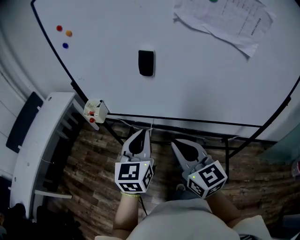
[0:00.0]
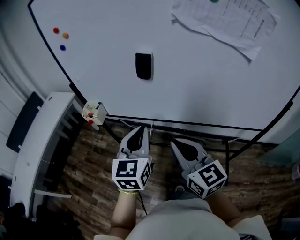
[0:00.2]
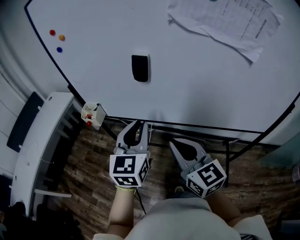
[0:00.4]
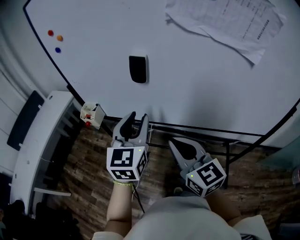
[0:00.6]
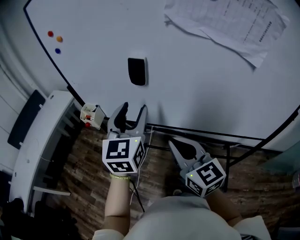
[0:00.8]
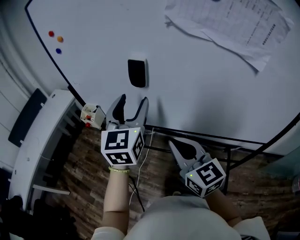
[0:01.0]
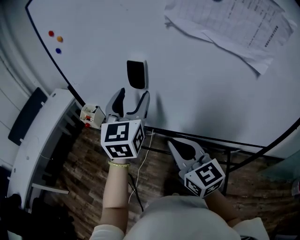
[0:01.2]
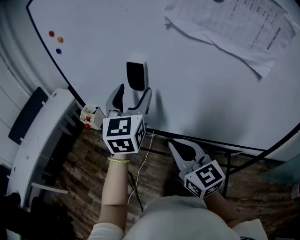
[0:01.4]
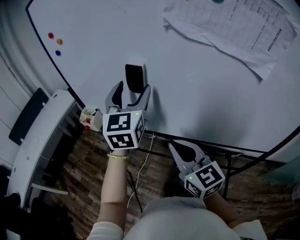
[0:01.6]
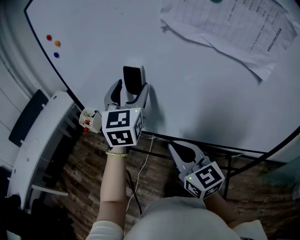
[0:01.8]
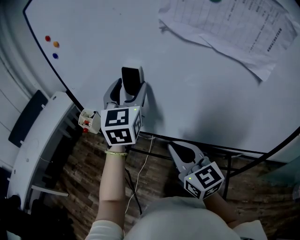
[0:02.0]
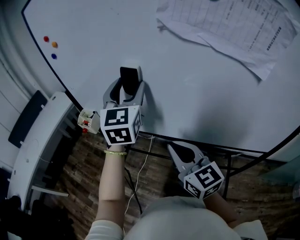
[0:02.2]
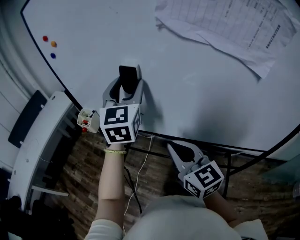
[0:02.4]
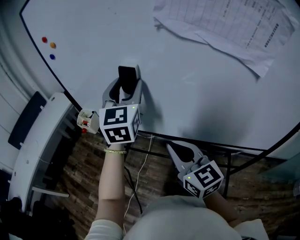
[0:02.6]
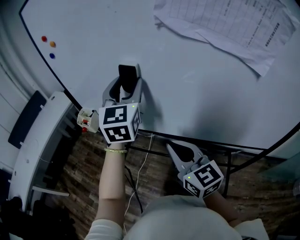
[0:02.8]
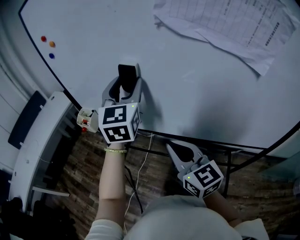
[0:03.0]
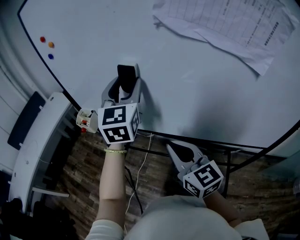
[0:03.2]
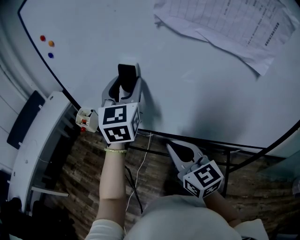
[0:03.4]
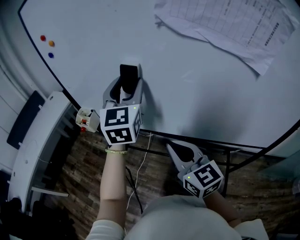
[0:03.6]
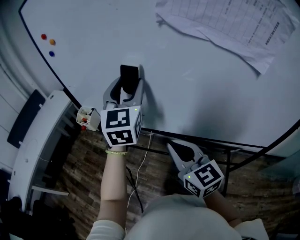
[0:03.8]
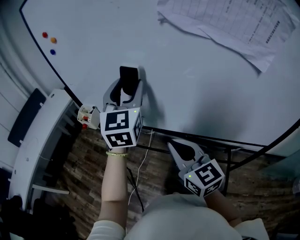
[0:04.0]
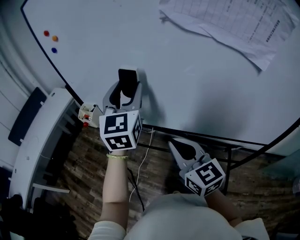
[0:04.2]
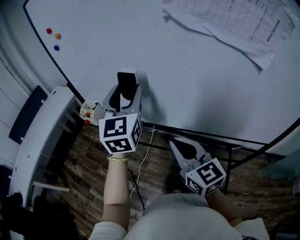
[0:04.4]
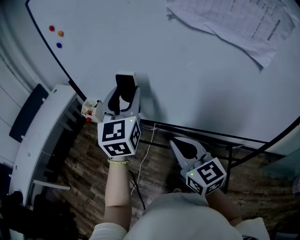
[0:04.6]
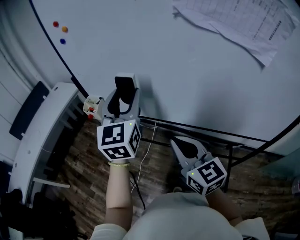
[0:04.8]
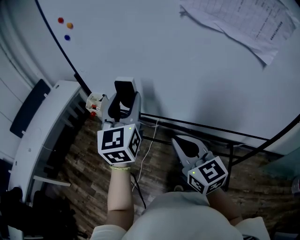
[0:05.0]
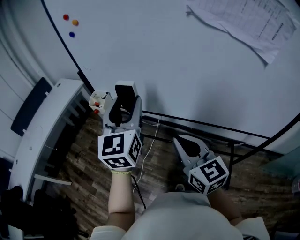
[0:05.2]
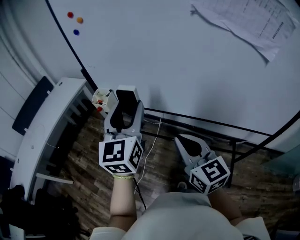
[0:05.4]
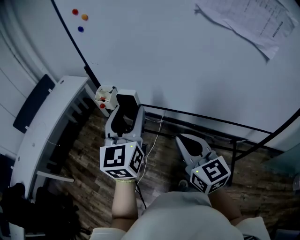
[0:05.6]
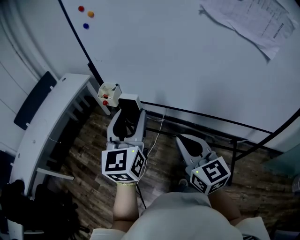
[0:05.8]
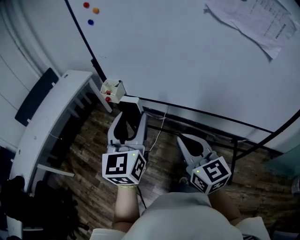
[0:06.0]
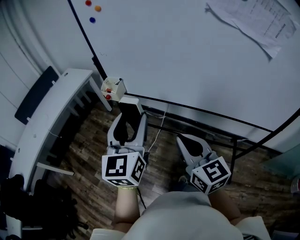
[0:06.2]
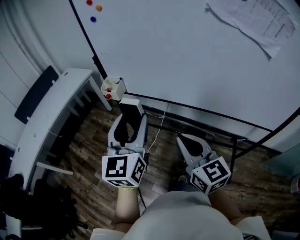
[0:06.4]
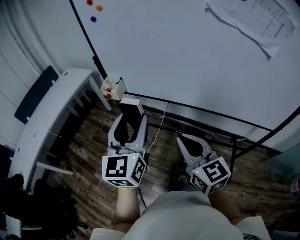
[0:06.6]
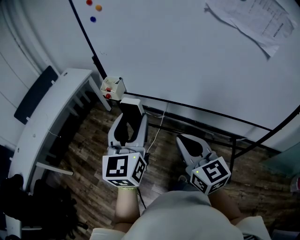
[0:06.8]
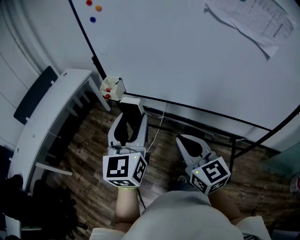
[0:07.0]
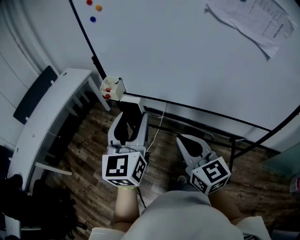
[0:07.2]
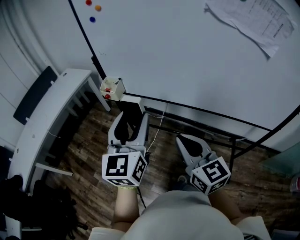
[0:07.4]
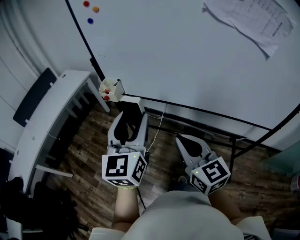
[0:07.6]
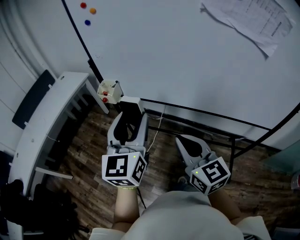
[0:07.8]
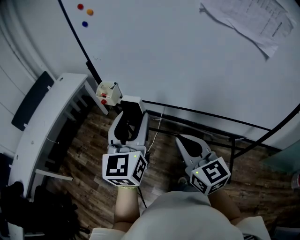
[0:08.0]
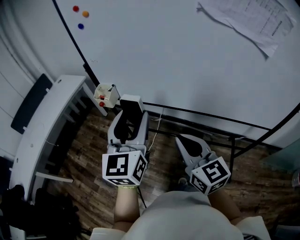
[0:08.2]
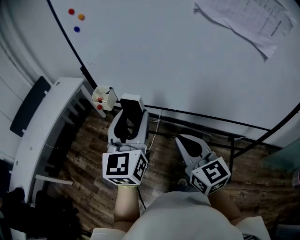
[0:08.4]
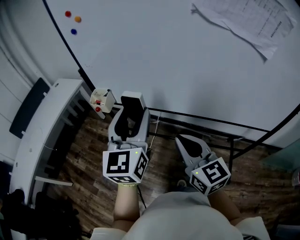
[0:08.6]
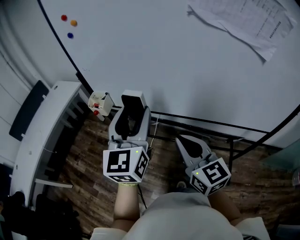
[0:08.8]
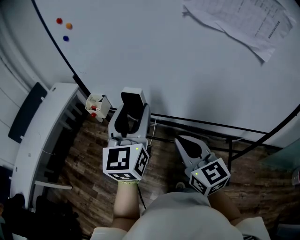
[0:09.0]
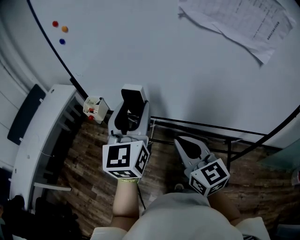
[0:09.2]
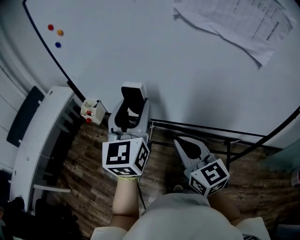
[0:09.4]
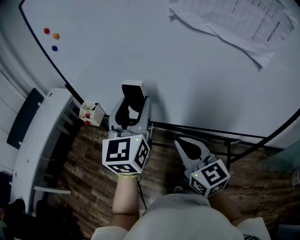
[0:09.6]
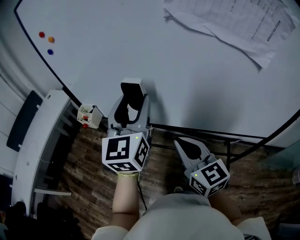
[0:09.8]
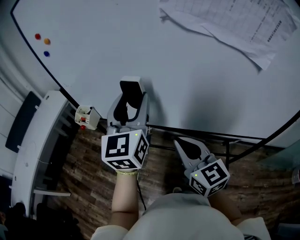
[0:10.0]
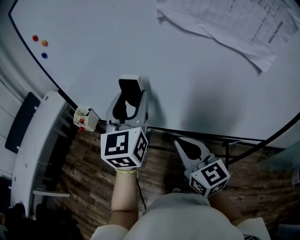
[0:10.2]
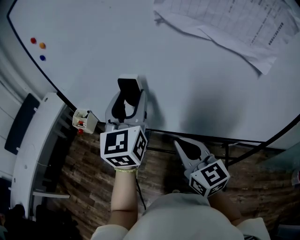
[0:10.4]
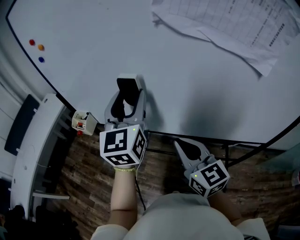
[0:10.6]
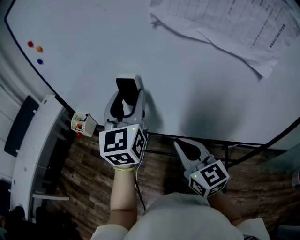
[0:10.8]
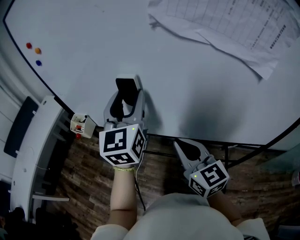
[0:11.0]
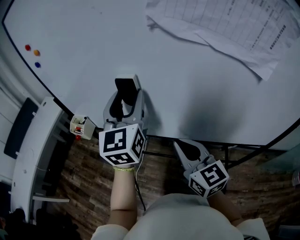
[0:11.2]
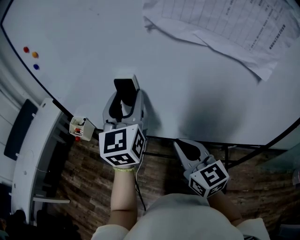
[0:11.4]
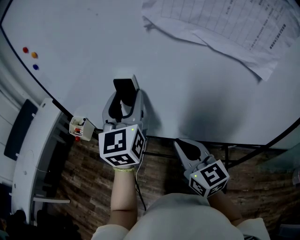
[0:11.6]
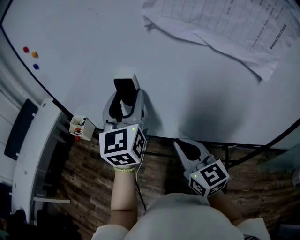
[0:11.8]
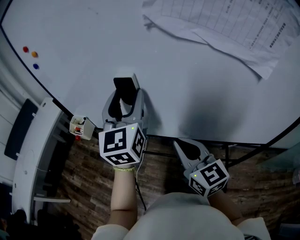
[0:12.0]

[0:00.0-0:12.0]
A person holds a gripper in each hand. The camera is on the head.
0.0 to 1.6 s: The right gripper is displaced forward and to the right by approximately 10 cm, while the left gripper goes about 25 cm forward, upward and to the right, and opens.
1.6 to 3.0 s: The grippers move only a little.
3.0 to 4.4 s: The left gripper moves some 5 cm.
4.4 to 6.0 s: The right gripper heads to the left and backward, covering roughly 15 cm. The left gripper shifts about 20 cm backward and to the left.
6.0 to 7.6 s: The grippers move only a little.
7.6 to 9.0 s: The two grippers go approximately 10 cm to the right and forward.
9.0 to 10.4 s: The right gripper heads to the right and forward, covering about 10 cm. The left gripper moves forward and to the right, roughly 15 cm.
10.4 to 12.0 s: The grippers stay close to where they were, moving slightly.

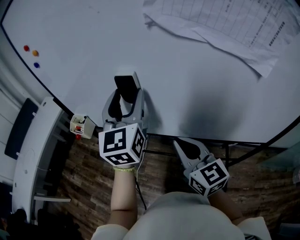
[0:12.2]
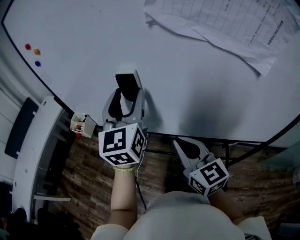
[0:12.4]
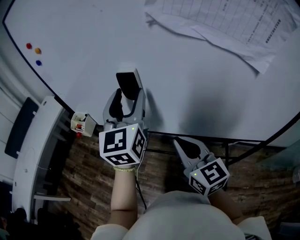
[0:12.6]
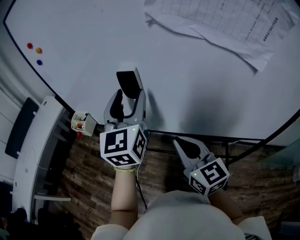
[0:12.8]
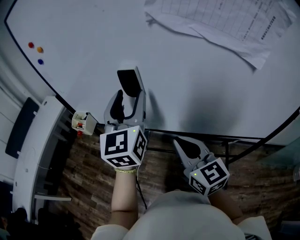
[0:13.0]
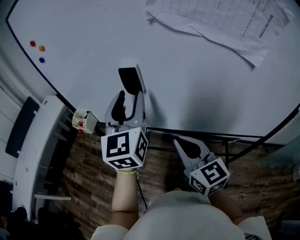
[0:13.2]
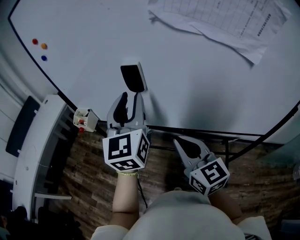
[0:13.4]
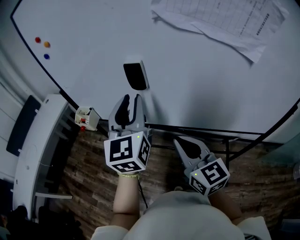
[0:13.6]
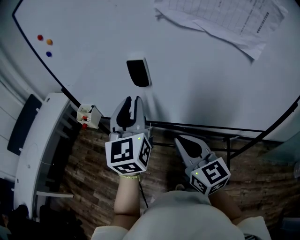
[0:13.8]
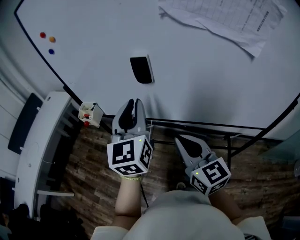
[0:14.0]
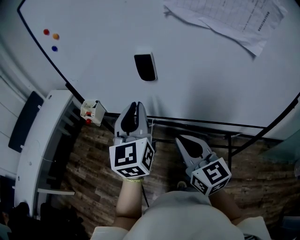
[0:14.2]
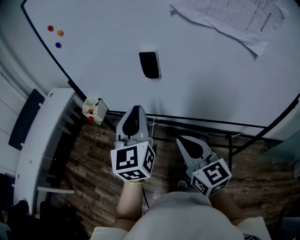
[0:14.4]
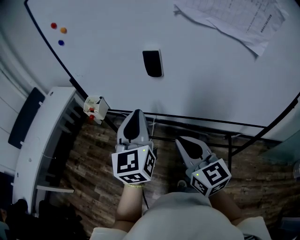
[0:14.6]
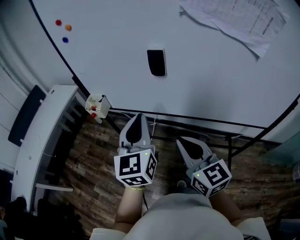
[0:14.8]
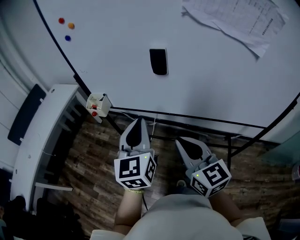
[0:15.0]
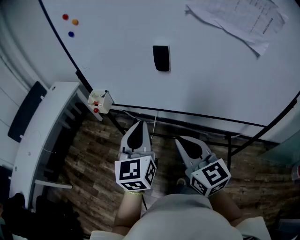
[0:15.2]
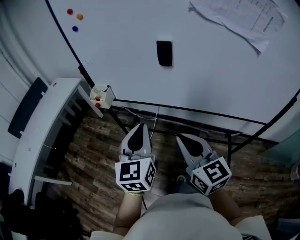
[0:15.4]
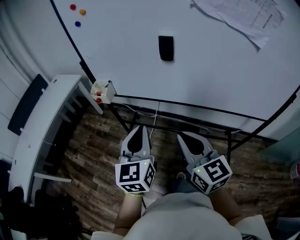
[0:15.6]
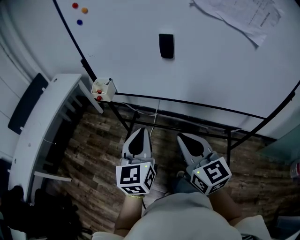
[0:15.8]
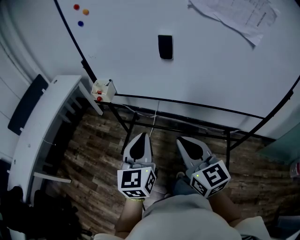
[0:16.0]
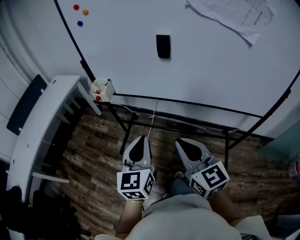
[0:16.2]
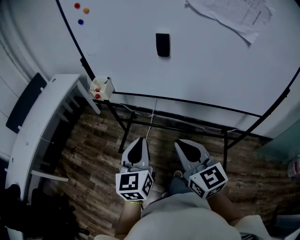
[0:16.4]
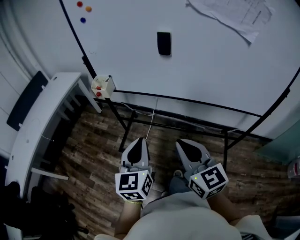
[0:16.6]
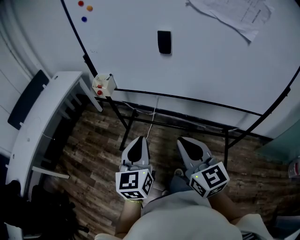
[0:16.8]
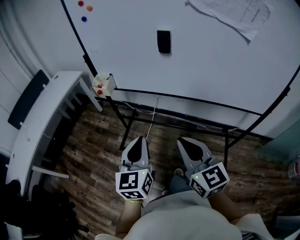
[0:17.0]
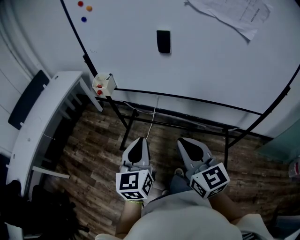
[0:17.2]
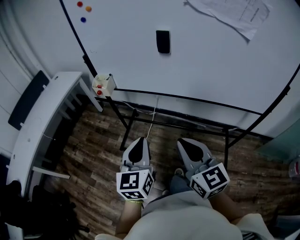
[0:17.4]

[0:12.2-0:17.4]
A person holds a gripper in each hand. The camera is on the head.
12.2 to 14.0 s: The two grippers go about 10 cm backward. The left gripper closes up.
14.0 to 15.6 s: The left gripper heads backward, to the left and downward, covering approximately 20 cm, while the right gripper shifts approximately 10 cm to the left and backward.
15.6 to 17.4 s: The two grippers go some 10 cm backward.

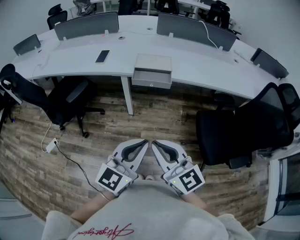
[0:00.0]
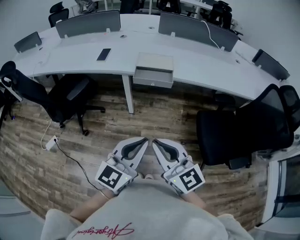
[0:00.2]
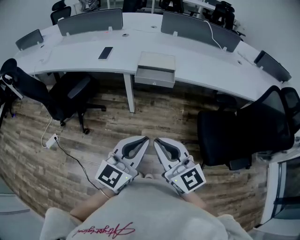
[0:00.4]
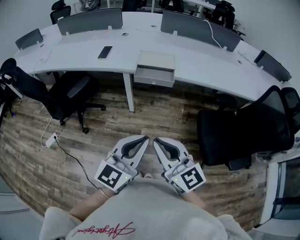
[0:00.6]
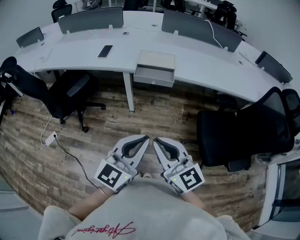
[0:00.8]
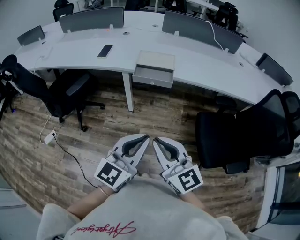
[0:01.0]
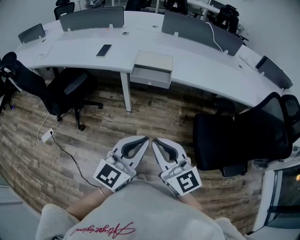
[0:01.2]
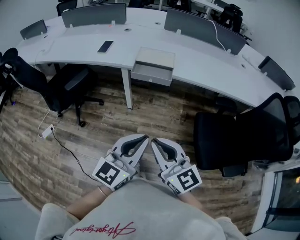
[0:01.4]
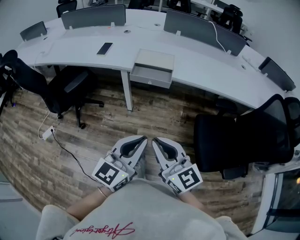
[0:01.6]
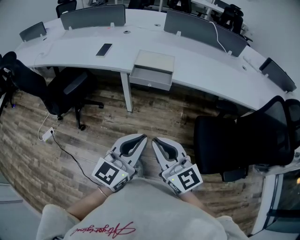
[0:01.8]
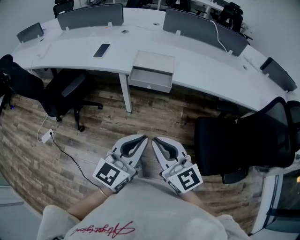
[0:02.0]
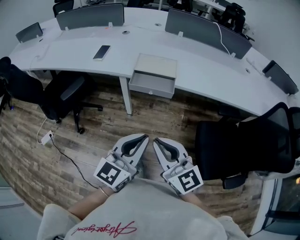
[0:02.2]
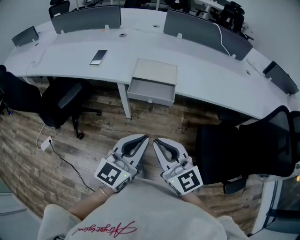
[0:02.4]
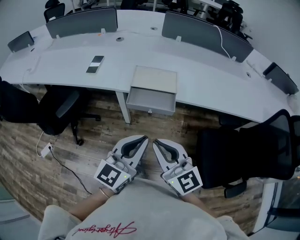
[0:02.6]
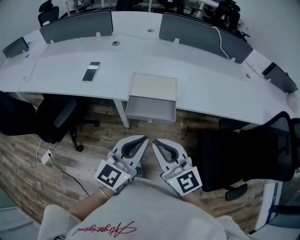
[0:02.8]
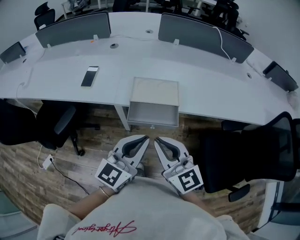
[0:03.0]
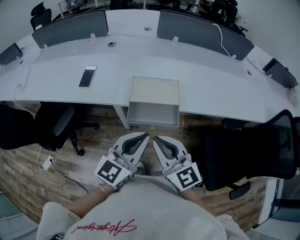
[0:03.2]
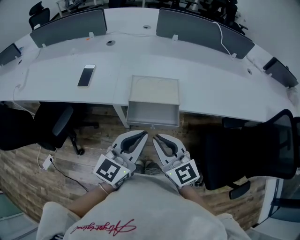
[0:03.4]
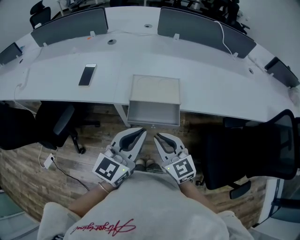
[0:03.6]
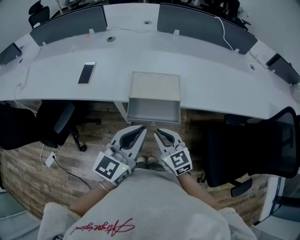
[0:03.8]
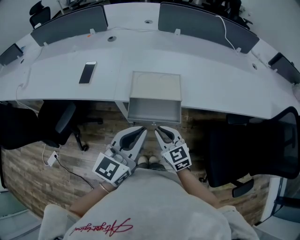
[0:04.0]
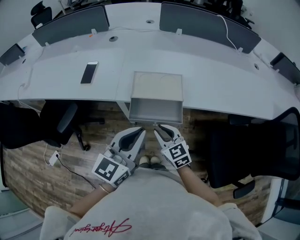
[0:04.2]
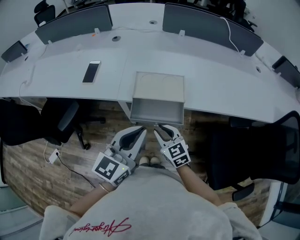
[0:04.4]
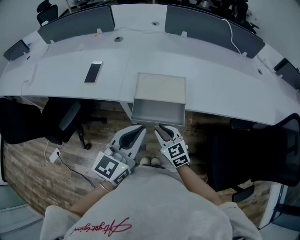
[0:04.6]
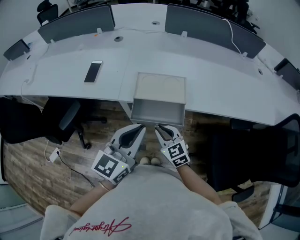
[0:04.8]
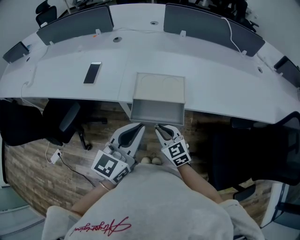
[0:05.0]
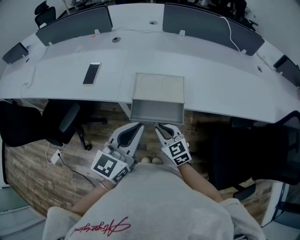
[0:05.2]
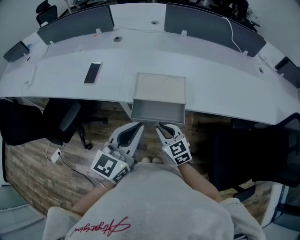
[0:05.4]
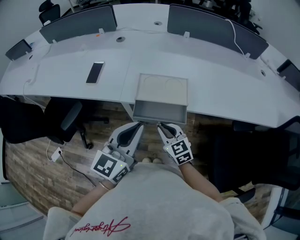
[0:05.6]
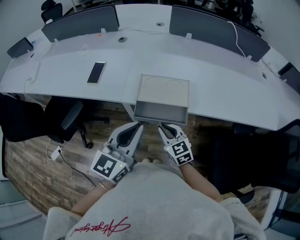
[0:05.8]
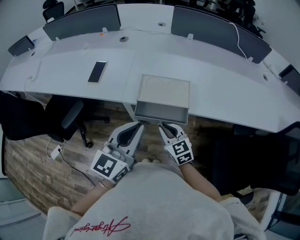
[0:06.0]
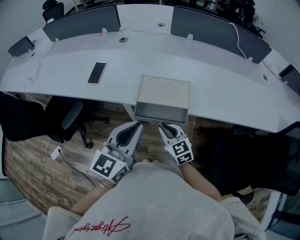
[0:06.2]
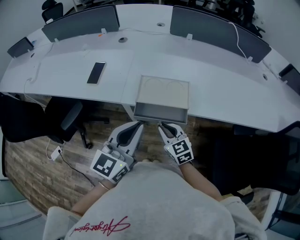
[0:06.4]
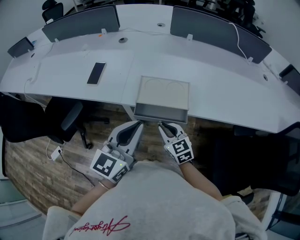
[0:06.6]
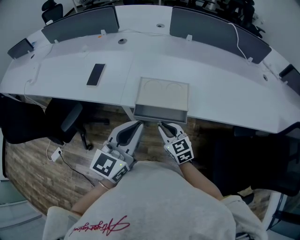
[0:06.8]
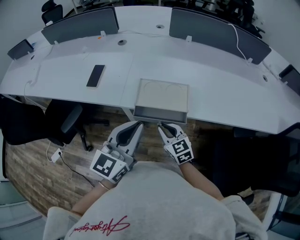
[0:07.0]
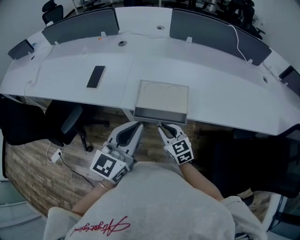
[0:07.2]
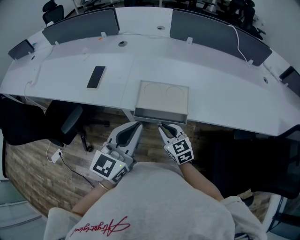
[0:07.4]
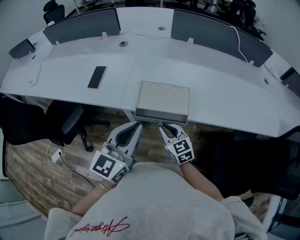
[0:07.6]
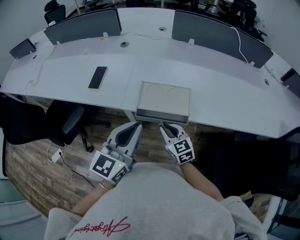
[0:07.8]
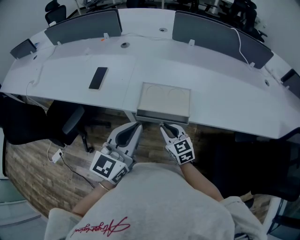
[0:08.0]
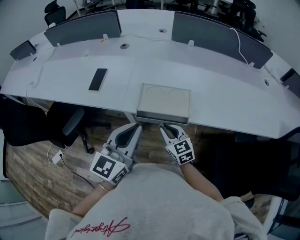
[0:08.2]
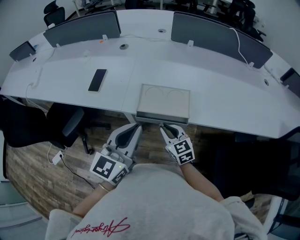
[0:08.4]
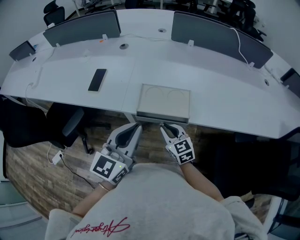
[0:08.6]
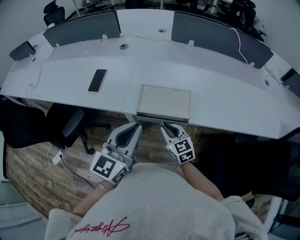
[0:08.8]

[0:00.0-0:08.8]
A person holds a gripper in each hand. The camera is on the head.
0.0 to 1.4 s: The grippers make only small movements.
1.4 to 3.0 s: Both grippers travel together forward, roughly 25 cm.
3.0 to 4.4 s: The right gripper is displaced downward and forward by about 20 cm, and turns by about 30 degrees.
4.4 to 7.4 s: The grippers make only small movements.
7.4 to 8.8 s: There are only small adjustments of the grippers.
